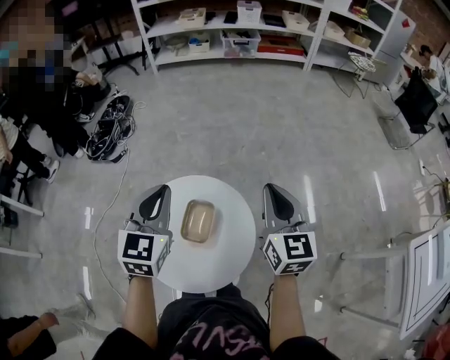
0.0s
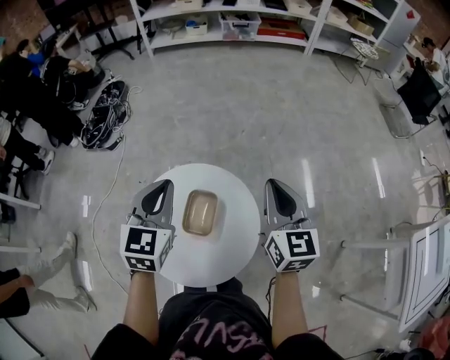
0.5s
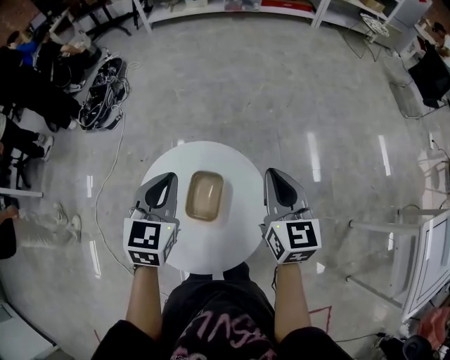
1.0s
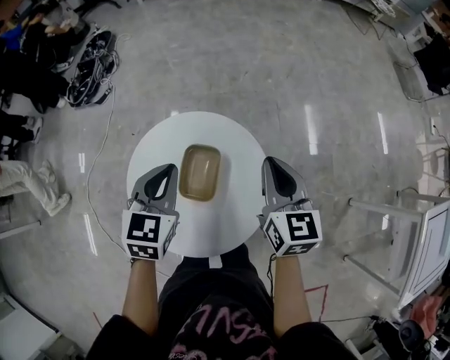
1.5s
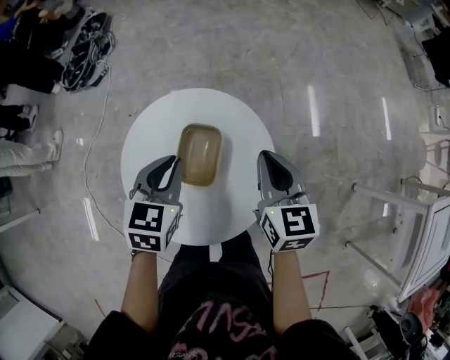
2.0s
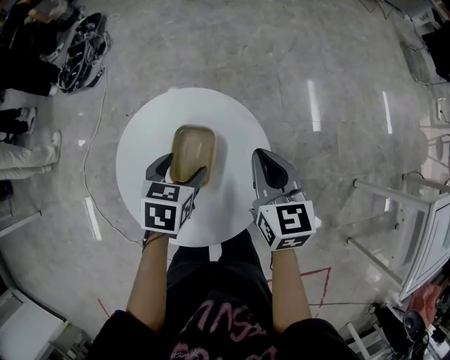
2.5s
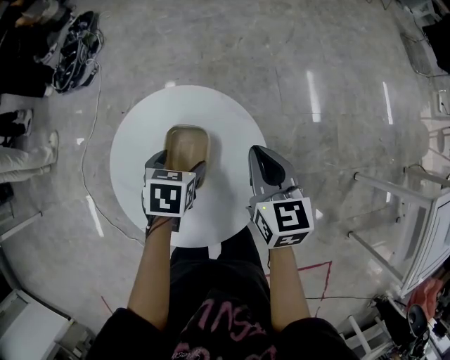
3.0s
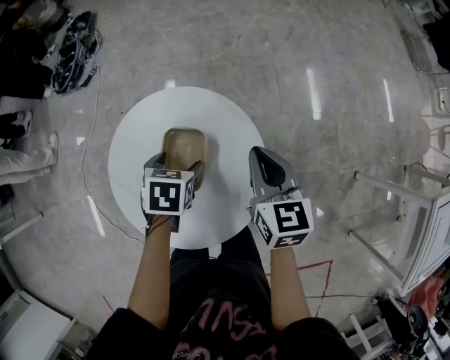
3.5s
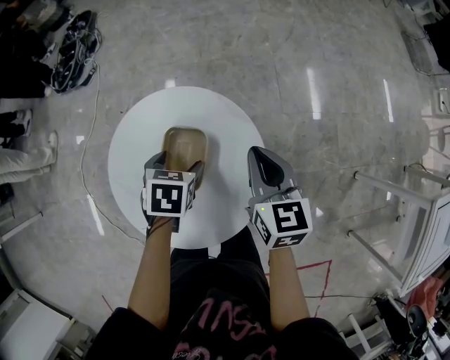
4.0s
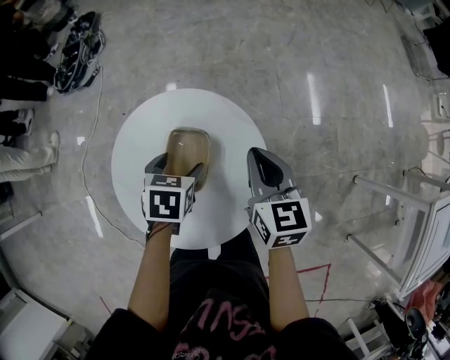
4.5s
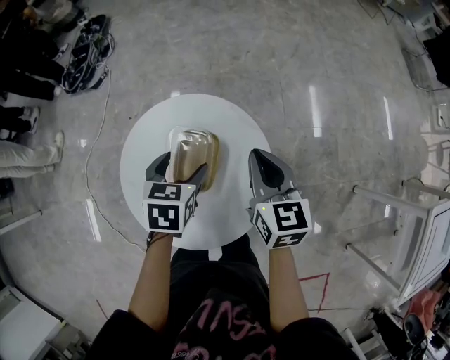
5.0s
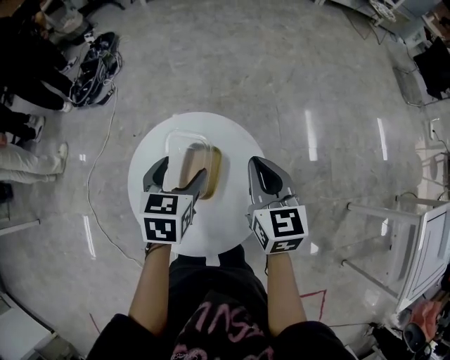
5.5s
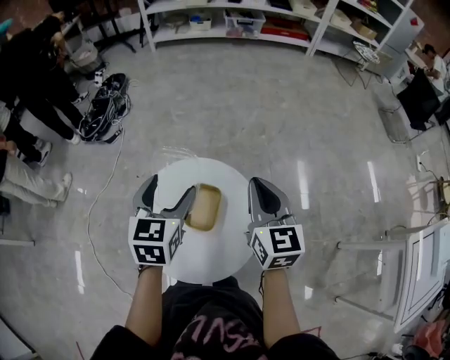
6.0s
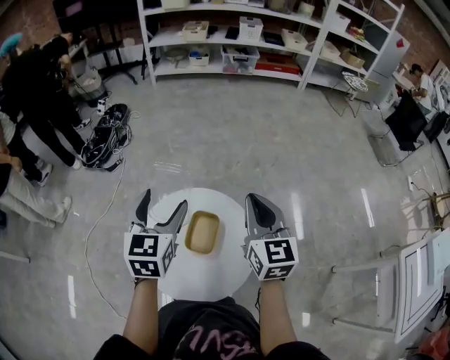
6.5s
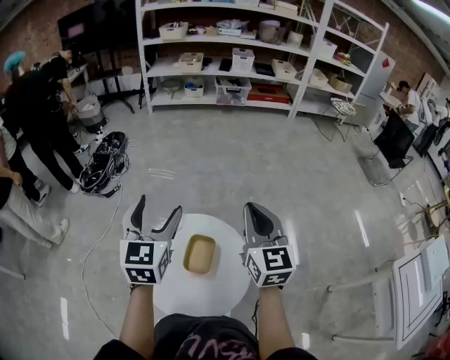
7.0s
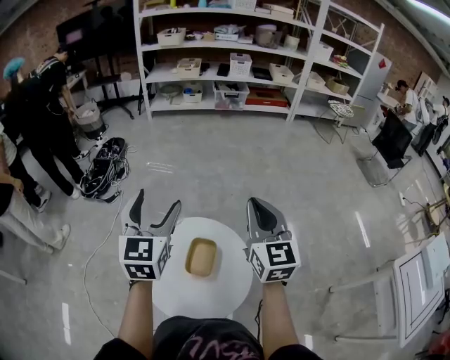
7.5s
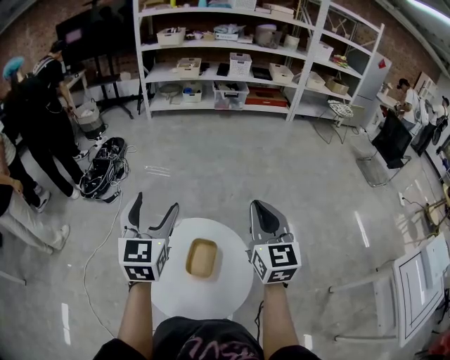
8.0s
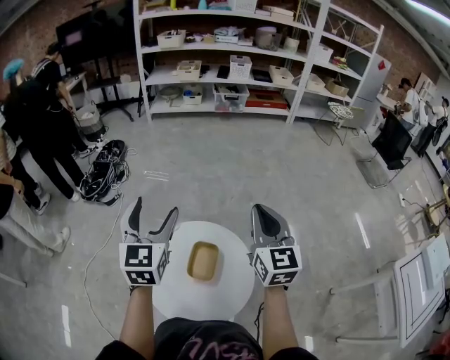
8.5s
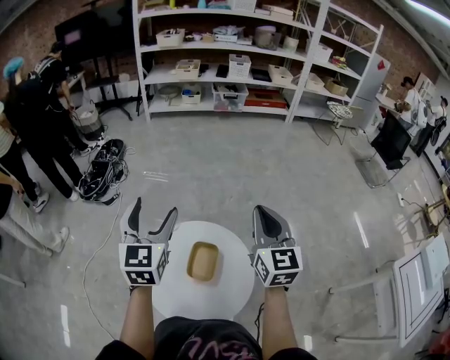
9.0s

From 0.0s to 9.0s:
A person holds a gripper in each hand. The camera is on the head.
From 0.0s to 2.0s: The grippers both shift downward by about 25 cm. The right gripper turns by roughly 20 degrees; the left gripper rotates approximately 30 degrees.
From 2.0s to 4.5s: The left gripper goes approximately 10 cm downward, swivels about 20 degrees, and opens its fingers.
From 4.5s to 7.0s: Both grippers travel together upward, roughly 35 cm. The right gripper swivels roughly 30 degrees. Meanwhile the left gripper tips its fingers upward by approximately 50 degrees.
From 7.0s to 9.0s: The grippers stay close to where they were, moving slightly.

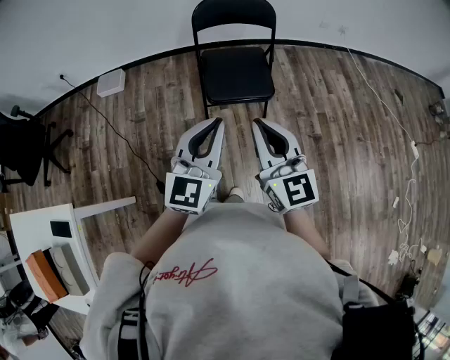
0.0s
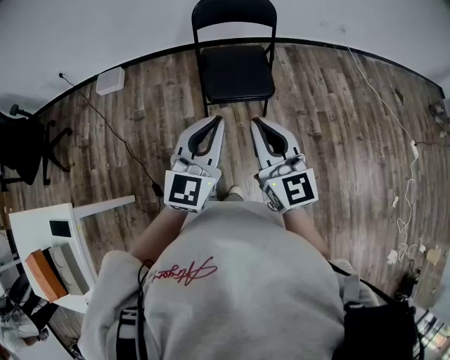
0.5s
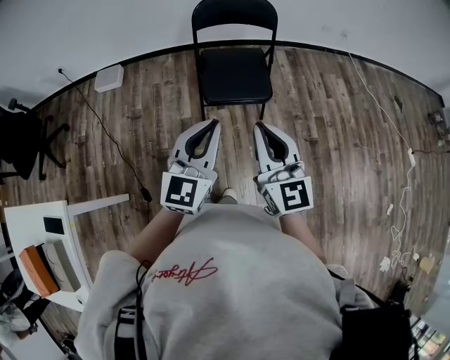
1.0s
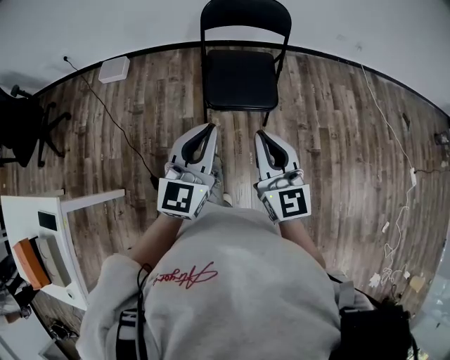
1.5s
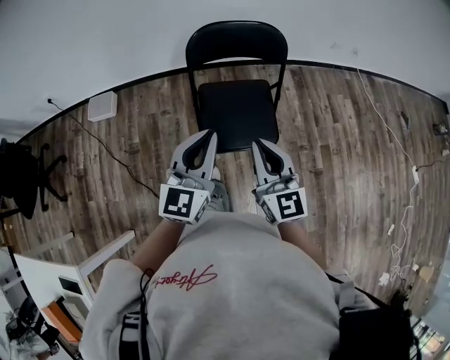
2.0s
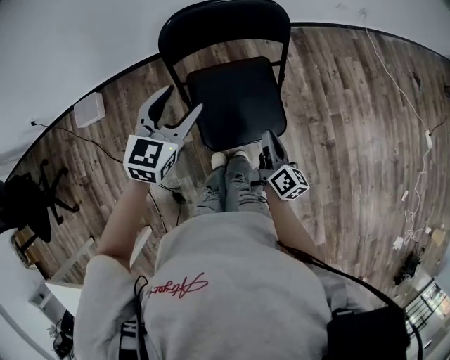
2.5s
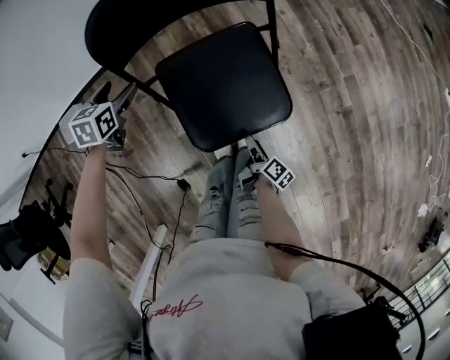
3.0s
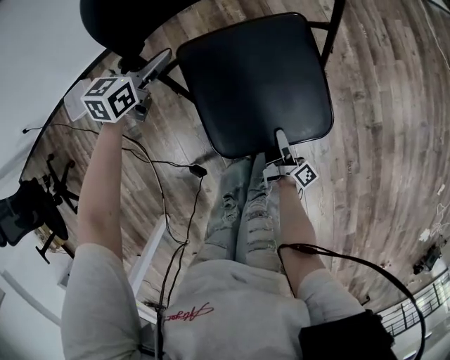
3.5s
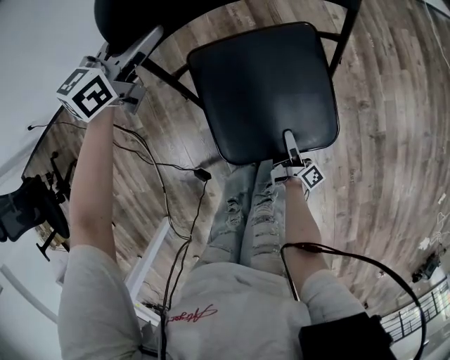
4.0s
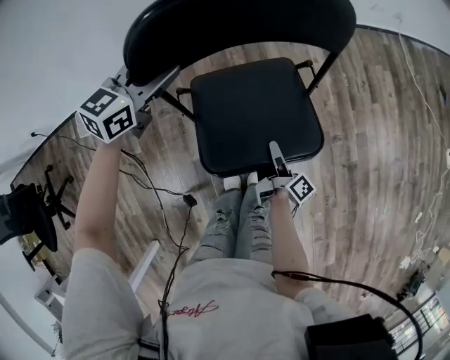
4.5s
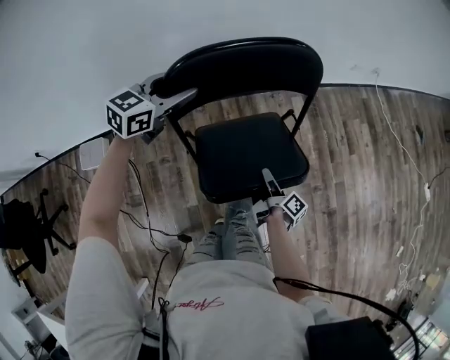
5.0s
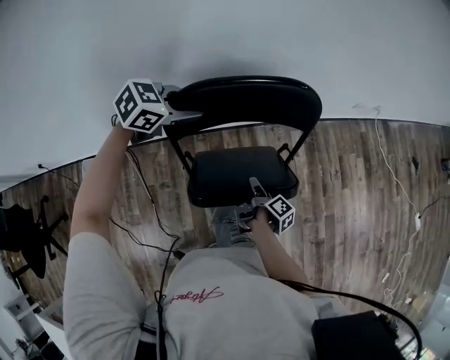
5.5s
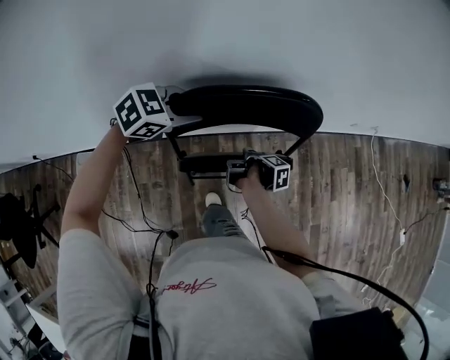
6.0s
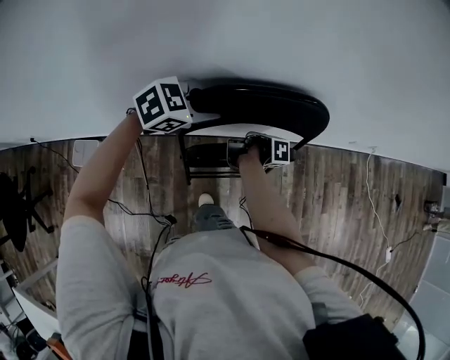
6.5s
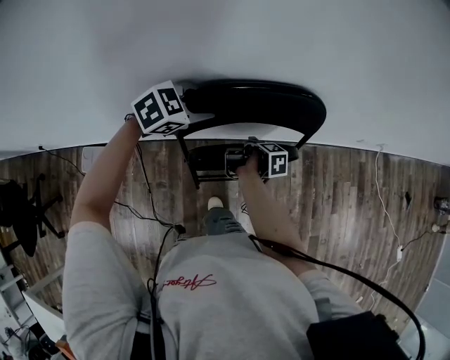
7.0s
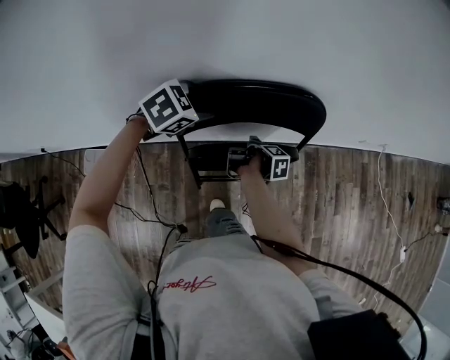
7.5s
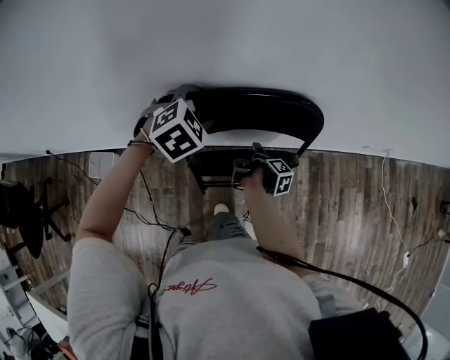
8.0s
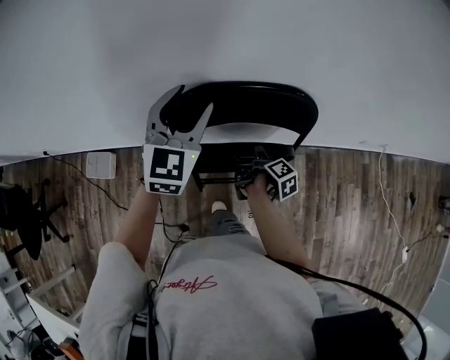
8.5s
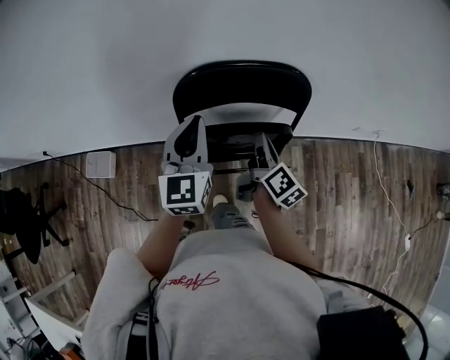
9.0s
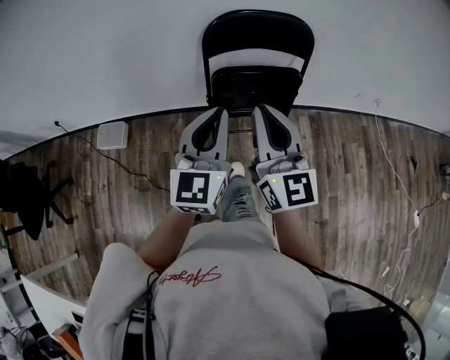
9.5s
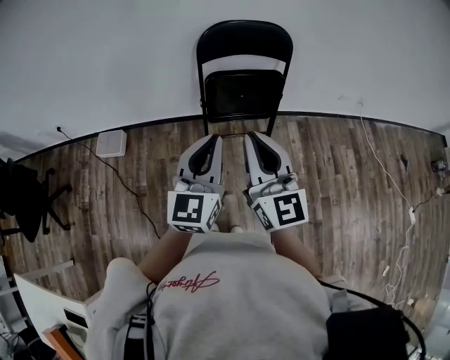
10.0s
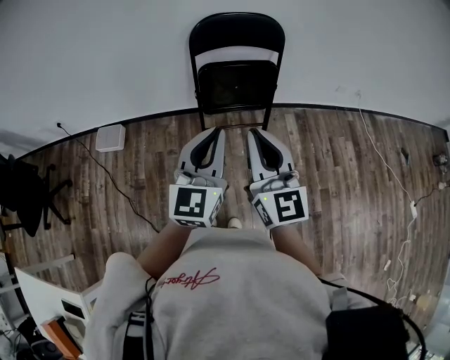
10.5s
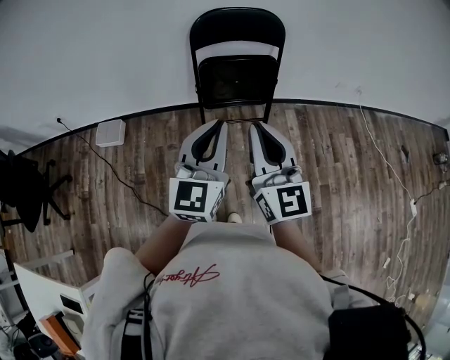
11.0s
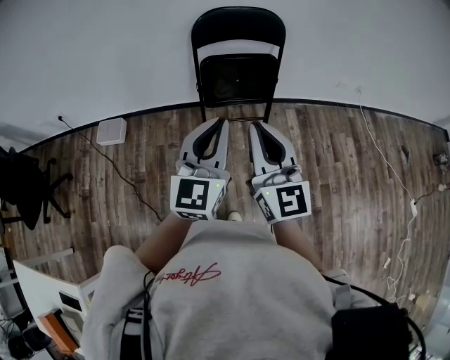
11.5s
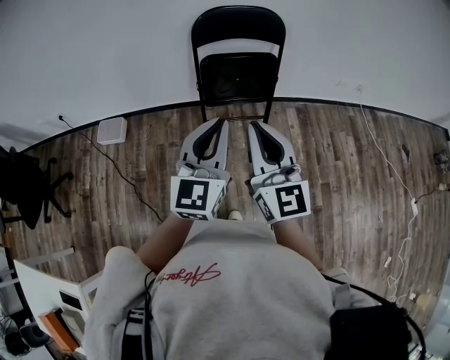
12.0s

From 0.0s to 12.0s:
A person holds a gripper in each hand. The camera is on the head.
From 0.0s to 2.0s: The two grippers go approximately 25 cm forward.
From 2.0s to 4.0s: The left gripper travels forward, downward and to the left by some 50 cm, swivels approximately 40 degrees, and opens its fingers, while the right gripper goes some 50 cm downward, twists some 90 degrees clockwise, seen from behind, and opens its fingers.
From 4.0s to 6.0s: The right gripper heads forward, upward and to the left, covering some 50 cm, angles its fingers downward, by roughly 40 degrees, and closes up, while the left gripper heads forward and upward, covering approximately 25 cm, rotates roughly 40 degrees, and closes up.
From 6.0s to 8.0s: The right gripper changes place by approximately 10 cm; the left gripper ends up roughly 5 cm from where it was, rotates some 30 degrees, and opens its fingers.
From 8.0s to 10.0s: The two grippers travel together, backward, approximately 50 cm. The right gripper travels upward by some 40 cm, rotates around the line of its fingers by about 100 degrees, counterclockwise from behind, and closes its fingers, while the left gripper tips its fingers upward by approximately 60 degrees, and closes.
From 10.0s to 12.0s: The left gripper shifts by roughly 5 cm, while the right gripper heads backward, covering approximately 5 cm.

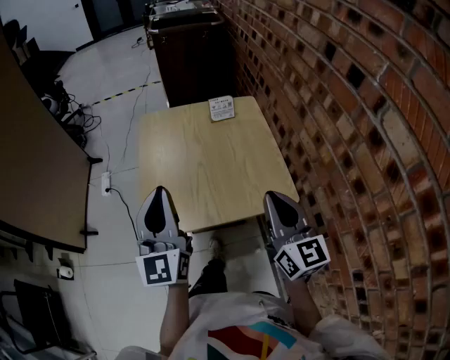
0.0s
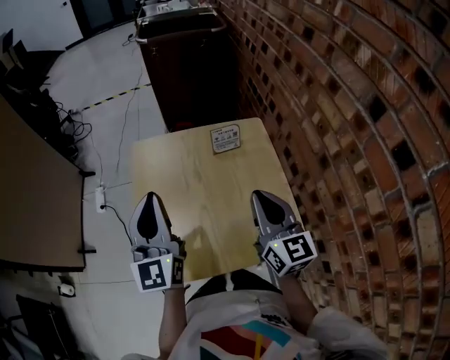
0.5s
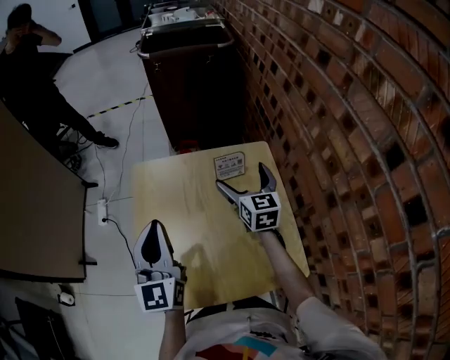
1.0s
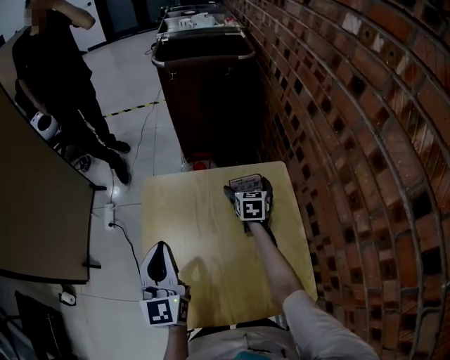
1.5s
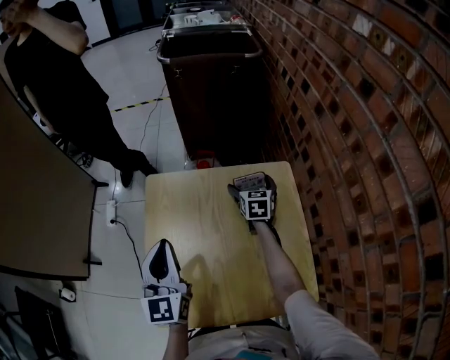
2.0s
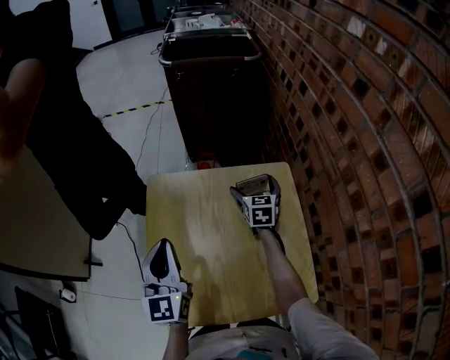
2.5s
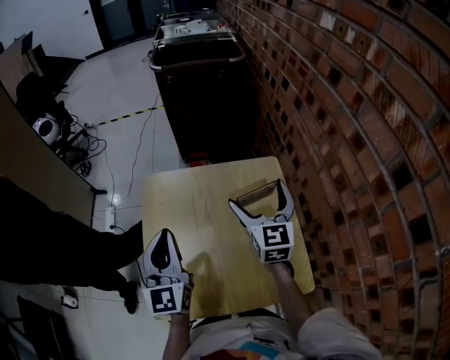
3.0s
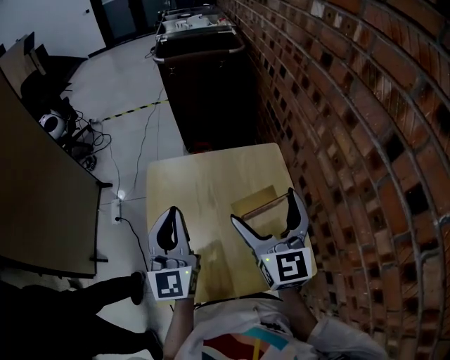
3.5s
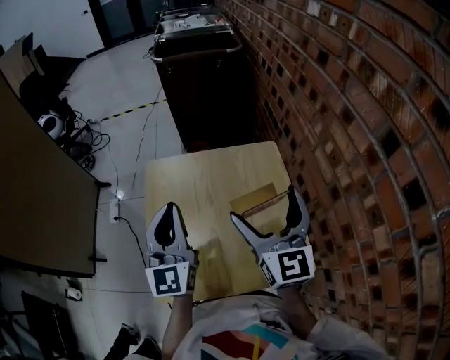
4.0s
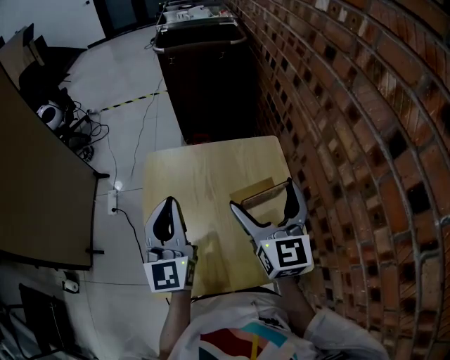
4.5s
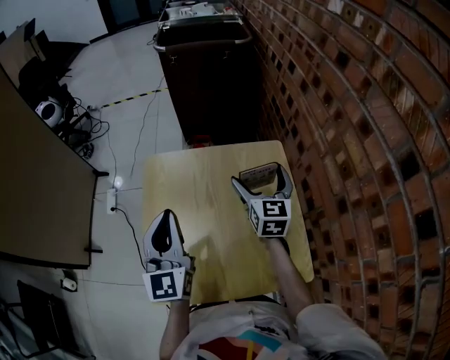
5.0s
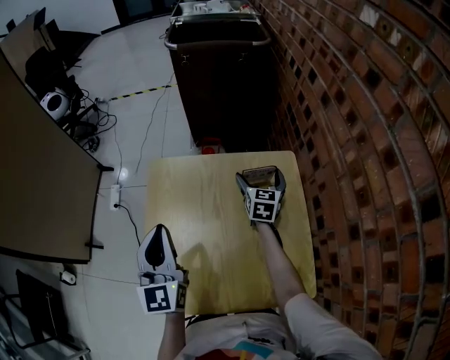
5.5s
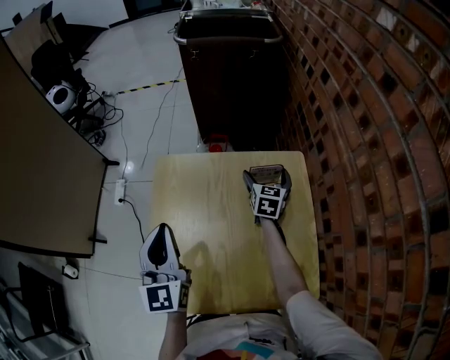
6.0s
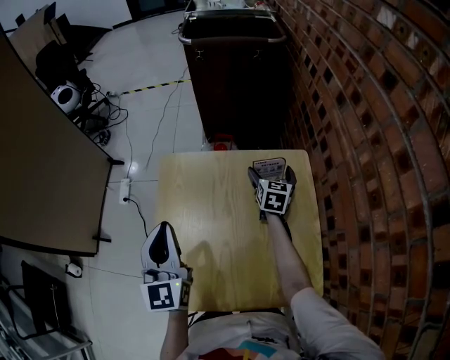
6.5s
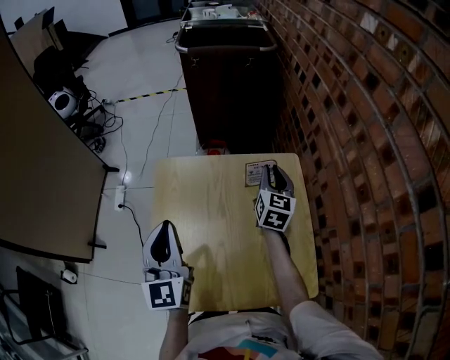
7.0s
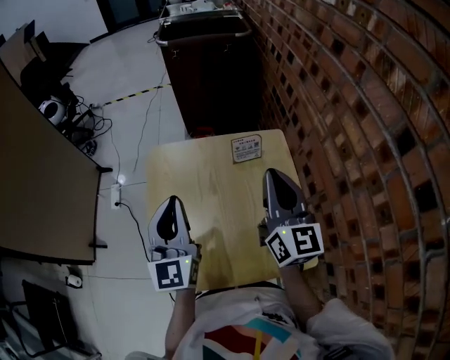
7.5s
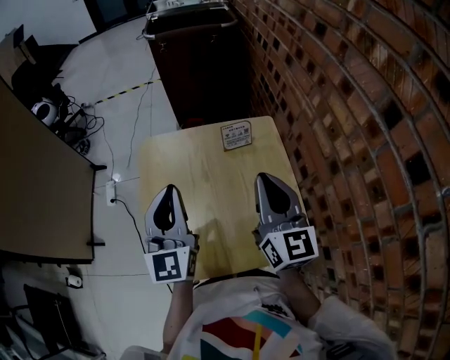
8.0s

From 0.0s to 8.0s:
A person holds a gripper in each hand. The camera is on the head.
From 0.0s to 2.0s: The left gripper is displaced forward by roughly 25 cm. Meanwhile the right gripper is displaced forward and downward by about 60 cm, tilts its fingers approximately 30 degrees downward, and opens its fingers.
From 2.0s to 4.0s: The left gripper shifts approximately 10 cm upward, while the right gripper shifts about 40 cm backward and upward, and tilts its fingers about 30 degrees upward.
From 4.0s to 6.0s: The right gripper shifts about 35 cm downward and forward, and changes its angle by some 30 degrees, while the left gripper shifts about 10 cm downward and to the left.
From 6.0s to 8.0s: The left gripper heads to the right, upward and backward, covering approximately 10 cm, while the right gripper moves backward and upward, about 35 cm, angles its fingers upward, by approximately 30 degrees, and closes.
